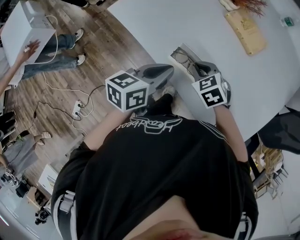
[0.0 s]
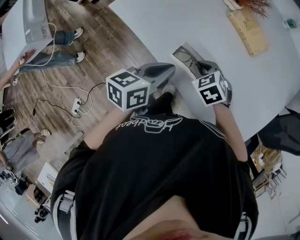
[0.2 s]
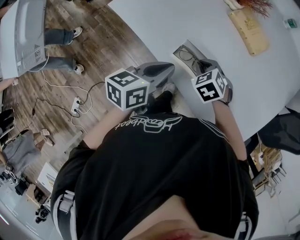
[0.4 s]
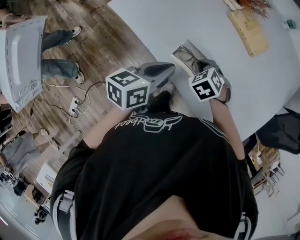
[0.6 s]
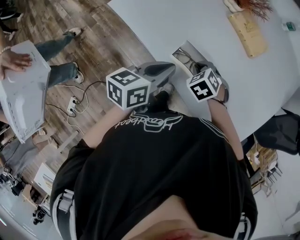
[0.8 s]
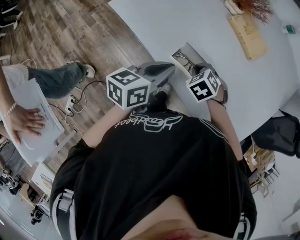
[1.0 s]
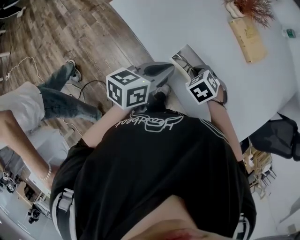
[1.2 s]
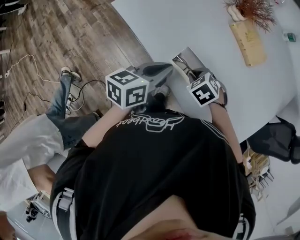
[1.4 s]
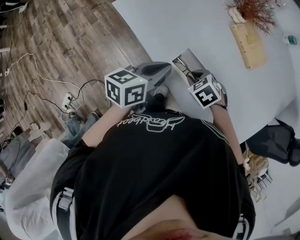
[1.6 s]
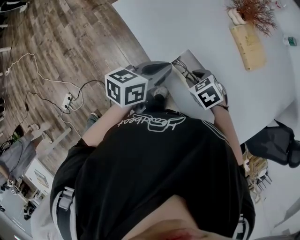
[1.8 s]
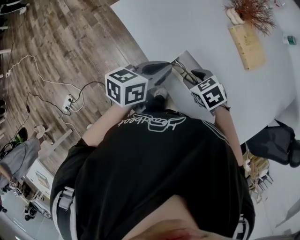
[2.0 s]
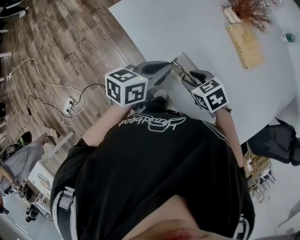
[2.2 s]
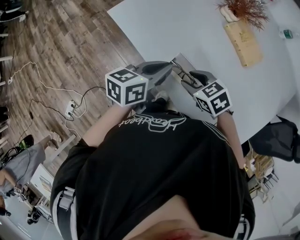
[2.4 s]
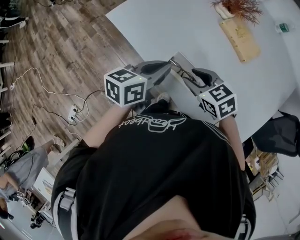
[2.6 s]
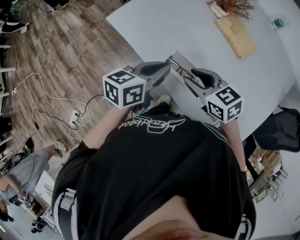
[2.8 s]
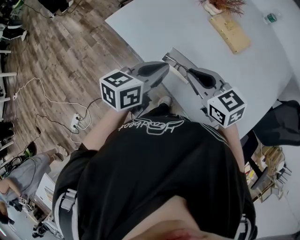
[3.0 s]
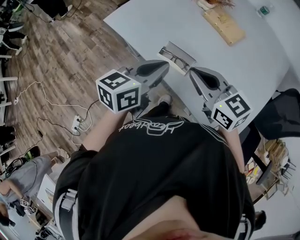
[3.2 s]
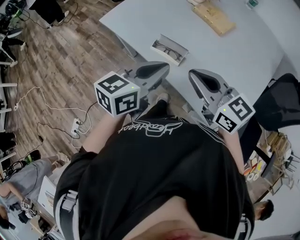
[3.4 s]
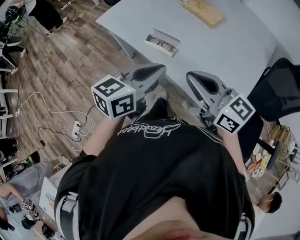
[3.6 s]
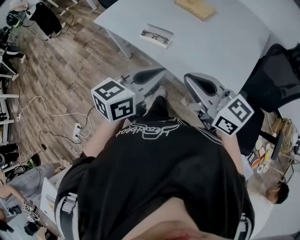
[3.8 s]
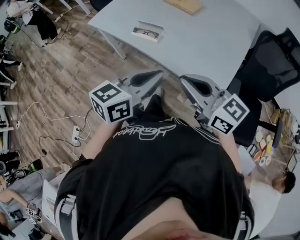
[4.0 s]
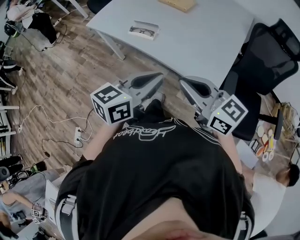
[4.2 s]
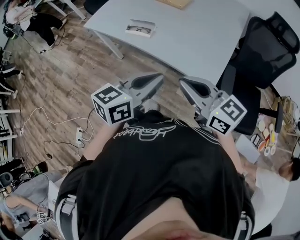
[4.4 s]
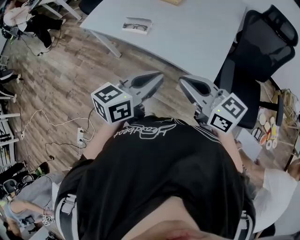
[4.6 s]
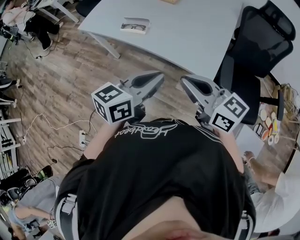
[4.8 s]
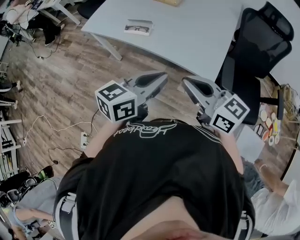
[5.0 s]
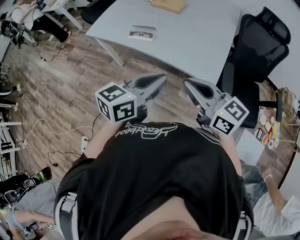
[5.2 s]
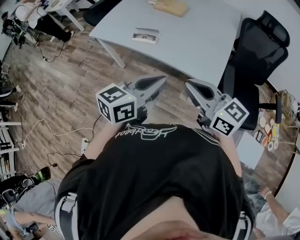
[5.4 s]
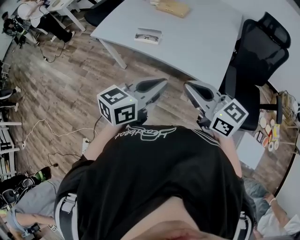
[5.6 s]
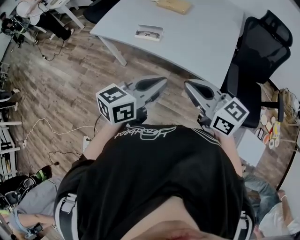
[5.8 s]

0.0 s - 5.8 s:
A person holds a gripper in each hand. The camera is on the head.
0.0 s - 1.4 s: The right gripper changes its angle by roughly 20 degrees.
1.4 s - 2.8 s: The right gripper goes roughly 15 cm upward, angles its fingers upward, by approximately 40 degrees, and opens up.
2.8 s - 4.4 s: The two grippers travel together, backward, approximately 40 cm. The left gripper swivels some 20 degrees. The right gripper turns by approximately 30 degrees, and closes up.
4.4 s - 5.8 s: The grippers both shift to the left by roughly 5 cm.

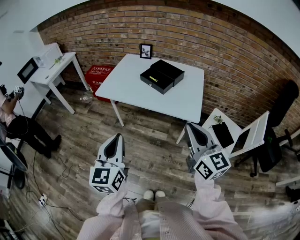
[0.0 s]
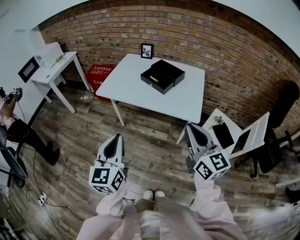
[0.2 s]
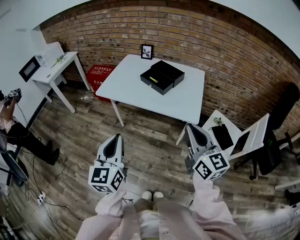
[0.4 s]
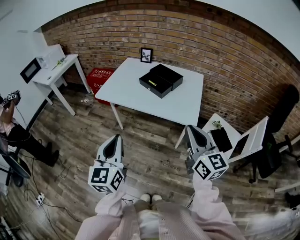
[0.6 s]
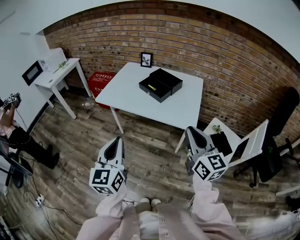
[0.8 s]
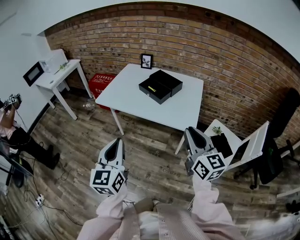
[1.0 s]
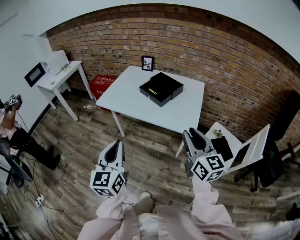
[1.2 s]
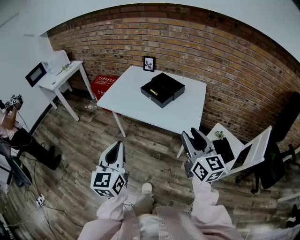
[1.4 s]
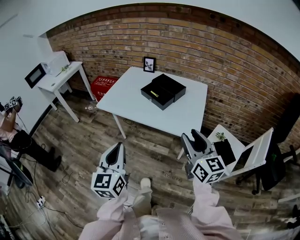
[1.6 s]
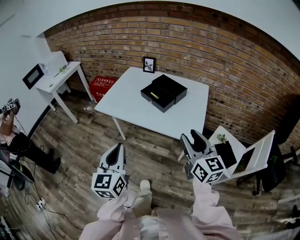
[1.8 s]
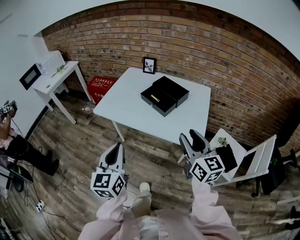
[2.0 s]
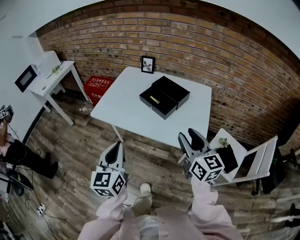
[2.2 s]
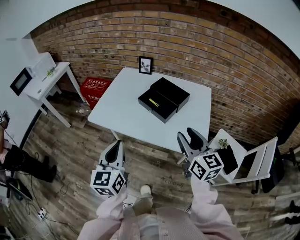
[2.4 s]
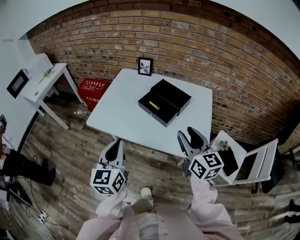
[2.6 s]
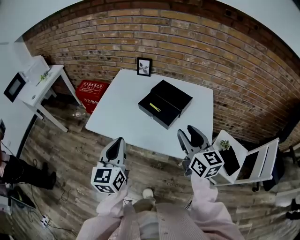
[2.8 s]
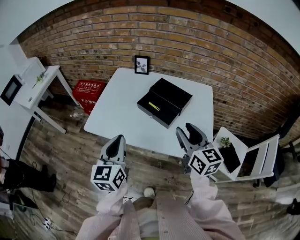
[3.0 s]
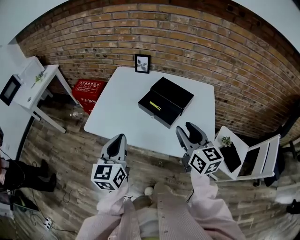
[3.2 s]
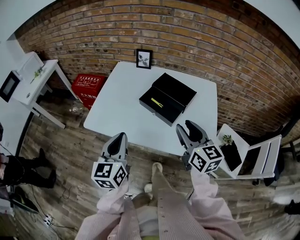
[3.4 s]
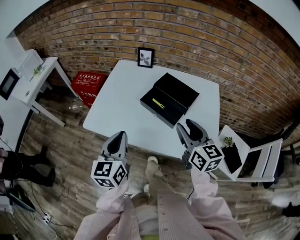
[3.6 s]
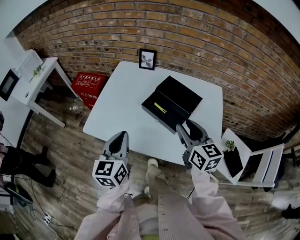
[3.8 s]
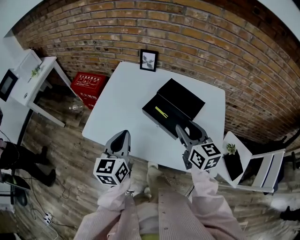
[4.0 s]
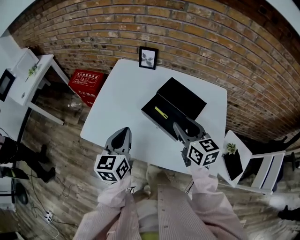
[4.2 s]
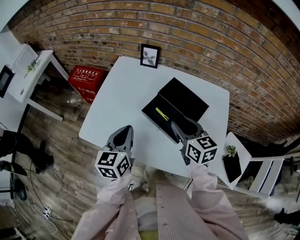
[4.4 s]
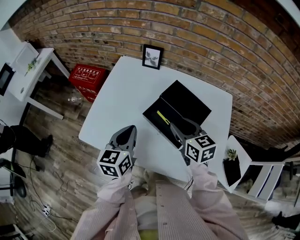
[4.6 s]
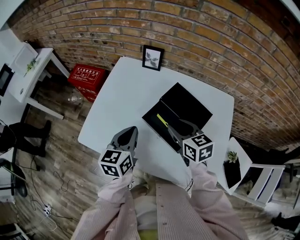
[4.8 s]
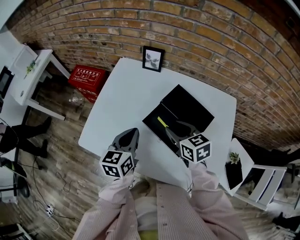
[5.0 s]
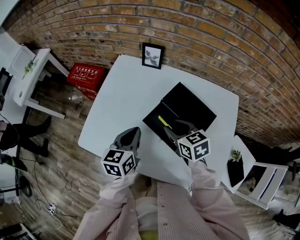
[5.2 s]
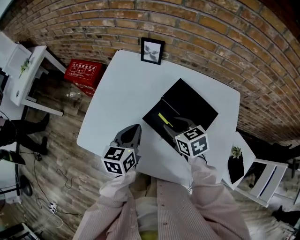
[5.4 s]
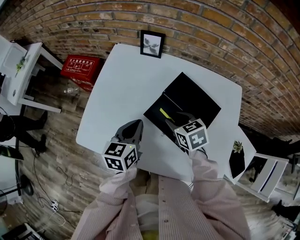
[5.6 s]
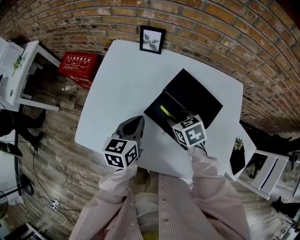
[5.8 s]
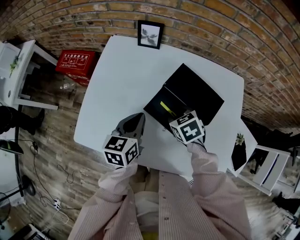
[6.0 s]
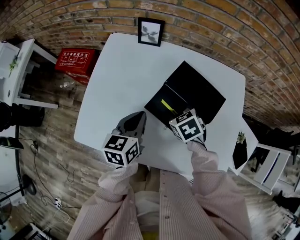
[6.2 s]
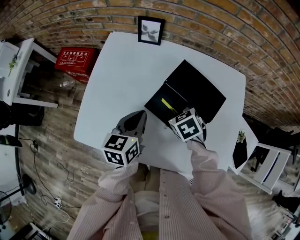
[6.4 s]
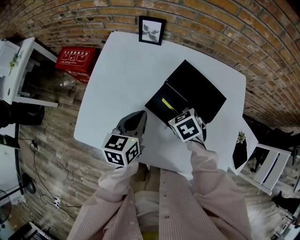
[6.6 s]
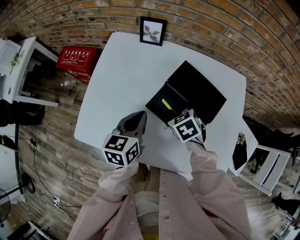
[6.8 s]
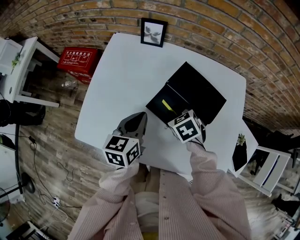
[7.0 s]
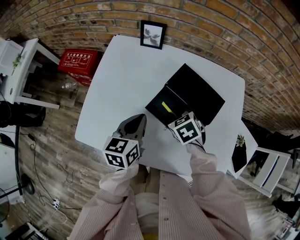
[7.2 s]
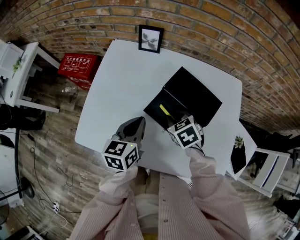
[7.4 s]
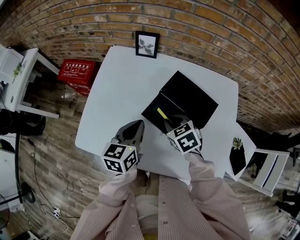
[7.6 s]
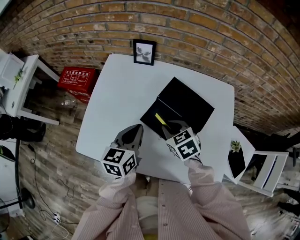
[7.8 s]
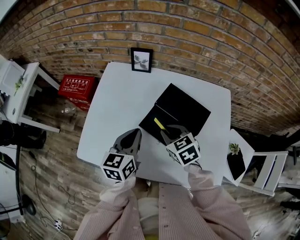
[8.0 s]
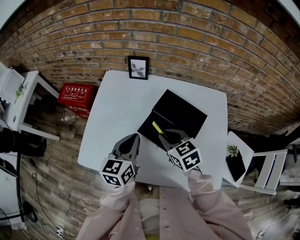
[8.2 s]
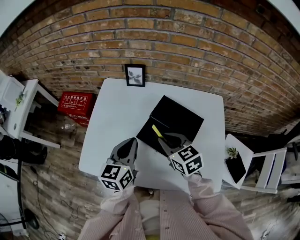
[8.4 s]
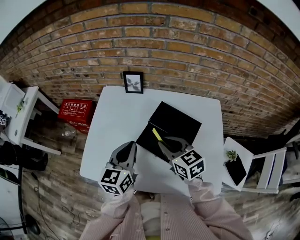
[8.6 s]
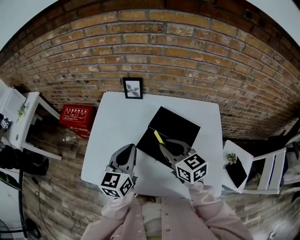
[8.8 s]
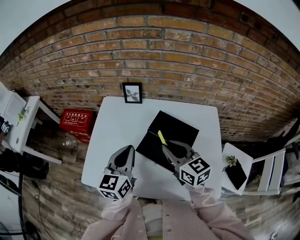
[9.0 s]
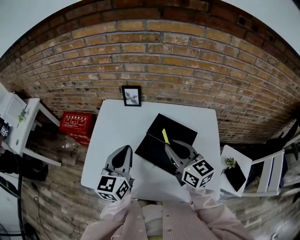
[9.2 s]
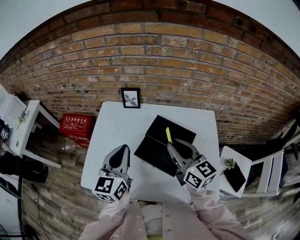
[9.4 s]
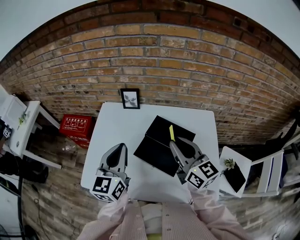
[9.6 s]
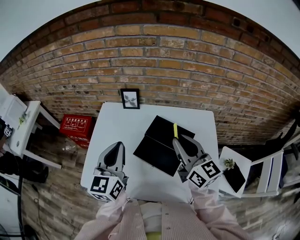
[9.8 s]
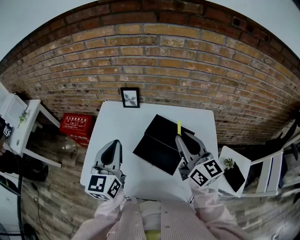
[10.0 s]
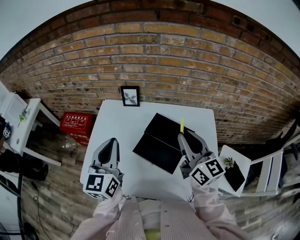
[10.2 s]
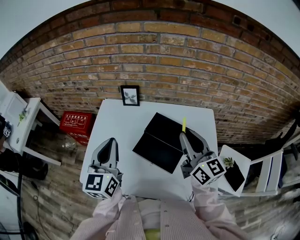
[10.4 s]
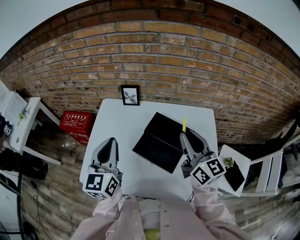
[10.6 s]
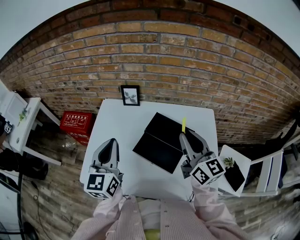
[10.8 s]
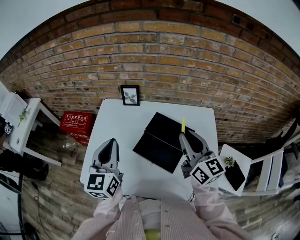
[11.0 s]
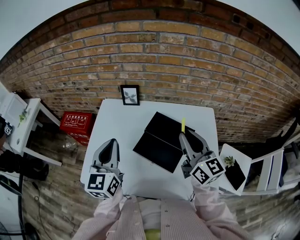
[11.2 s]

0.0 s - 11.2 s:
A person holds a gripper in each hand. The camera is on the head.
0.0 s - 1.6 s: The left gripper moves some 5 cm. The right gripper travels forward and to the right by approximately 10 cm, and opens.
1.6 s - 3.2 s: The two grippers go about 25 cm forward.
3.2 s - 4.8 s: Both grippers travel together forward and downward, about 25 cm. The right gripper changes its angle by roughly 30 degrees.
4.8 s - 6.4 s: The left gripper goes some 5 cm downward. The right gripper goes some 10 cm downward, and tilts its fingers some 30 degrees downward.
6.4 s - 8.0 s: The right gripper goes approximately 10 cm upward.
8.0 s - 9.6 s: The grippers both shift upward by some 15 cm. The right gripper tips its fingers upward by approximately 40 degrees, while the left gripper swivels approximately 20 degrees.
9.6 s - 11.2 s: The grippers make only small movements.

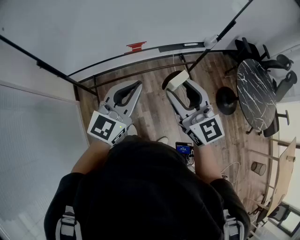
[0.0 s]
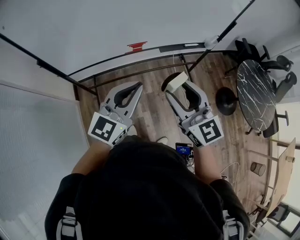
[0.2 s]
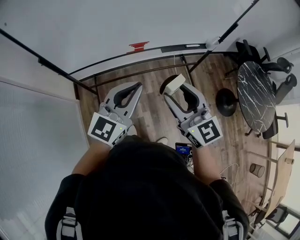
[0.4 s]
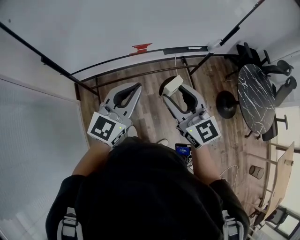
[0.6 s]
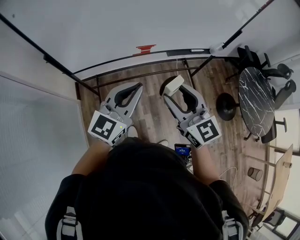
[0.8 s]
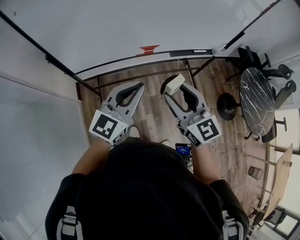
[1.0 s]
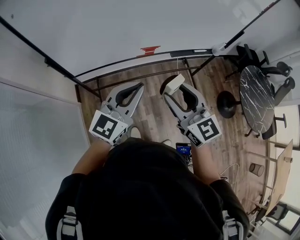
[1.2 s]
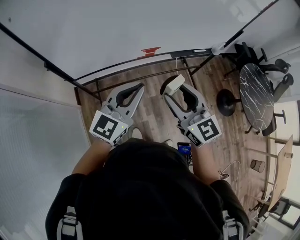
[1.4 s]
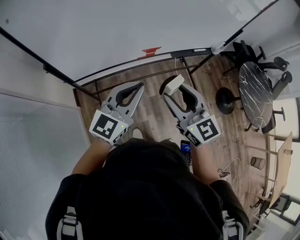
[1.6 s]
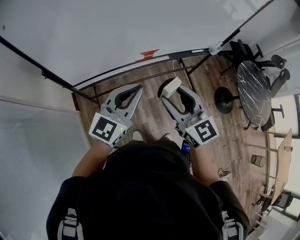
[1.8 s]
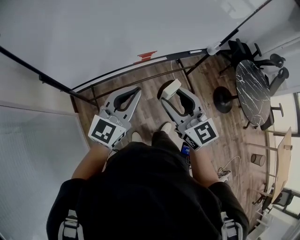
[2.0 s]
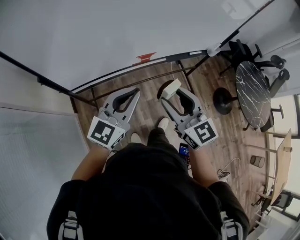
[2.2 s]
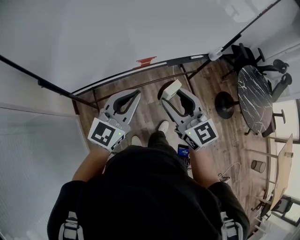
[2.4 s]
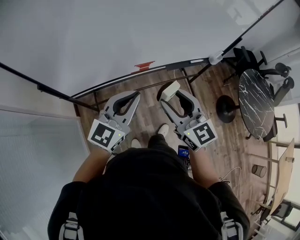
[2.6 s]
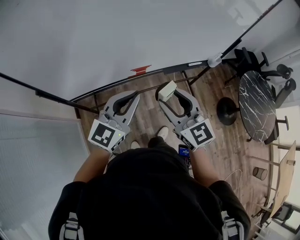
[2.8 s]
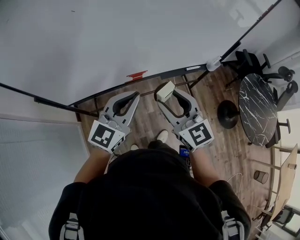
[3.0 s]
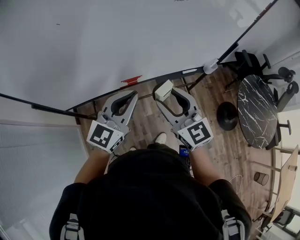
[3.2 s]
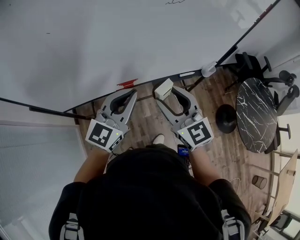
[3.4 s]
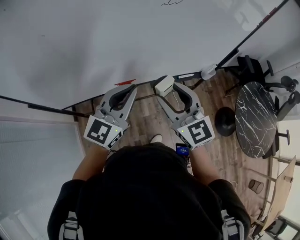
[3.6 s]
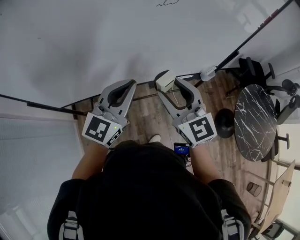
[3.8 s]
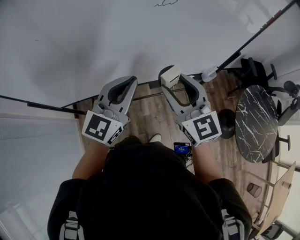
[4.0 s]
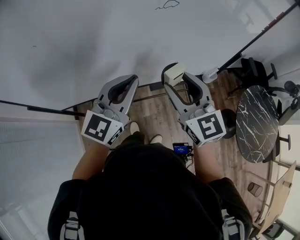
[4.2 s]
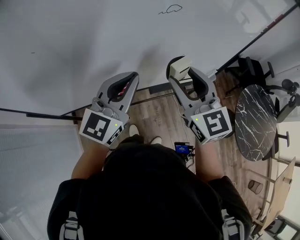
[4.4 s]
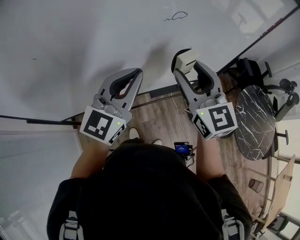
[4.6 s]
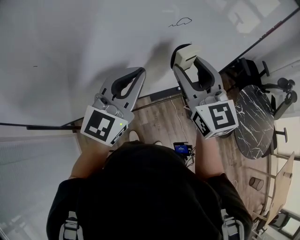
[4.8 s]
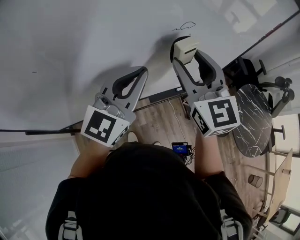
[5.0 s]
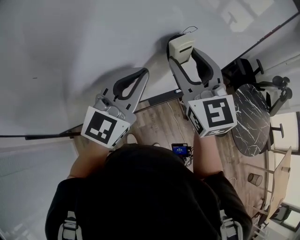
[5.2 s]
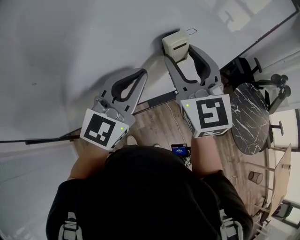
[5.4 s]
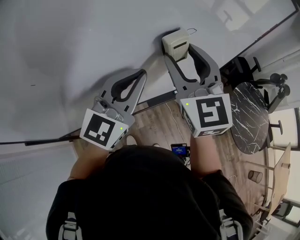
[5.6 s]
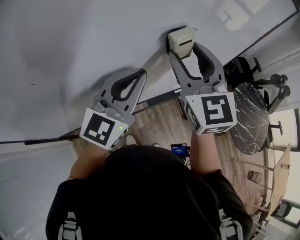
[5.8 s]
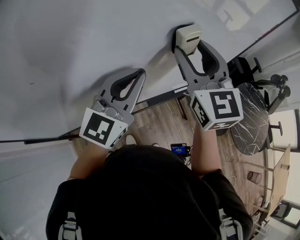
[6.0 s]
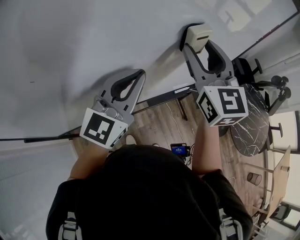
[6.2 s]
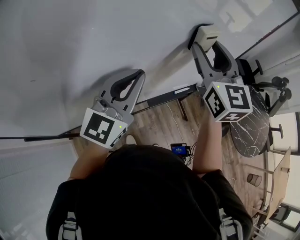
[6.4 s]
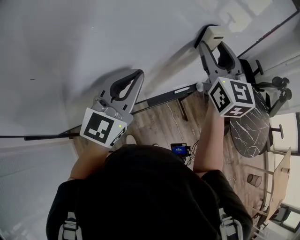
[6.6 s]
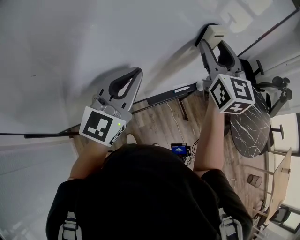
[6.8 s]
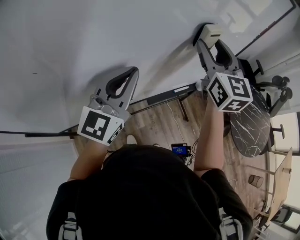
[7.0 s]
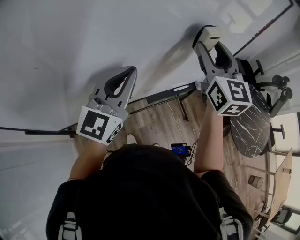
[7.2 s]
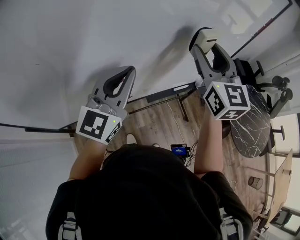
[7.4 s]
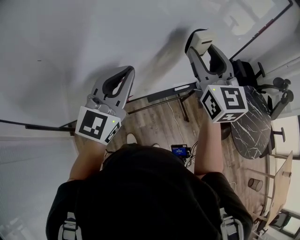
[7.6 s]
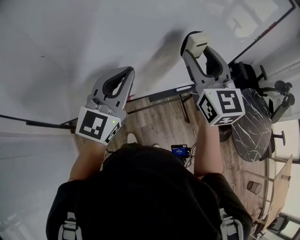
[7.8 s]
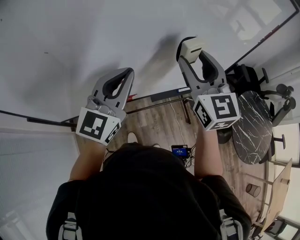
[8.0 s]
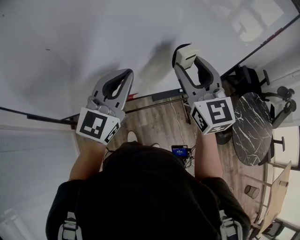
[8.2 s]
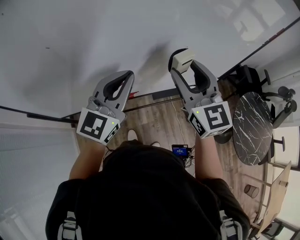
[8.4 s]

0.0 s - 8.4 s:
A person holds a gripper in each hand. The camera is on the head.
0.0 s - 1.4 s: The two grippers go about 10 cm to the left.
1.4 s - 2.8 s: Both grippers move forward and to the right, approximately 10 cm.
2.8 s - 4.2 s: The two grippers go some 20 cm forward and to the right.
4.2 s - 5.6 s: The right gripper is displaced upward, forward and to the left by some 15 cm, and changes its angle by roughly 20 degrees; the left gripper goes some 10 cm forward and upward.
5.6 s - 7.0 s: The right gripper moves to the right and forward, approximately 15 cm.
7.0 s - 8.4 s: The left gripper shifts by some 5 cm, while the right gripper moves backward, to the left and downward, about 15 cm, and swivels about 20 degrees.
